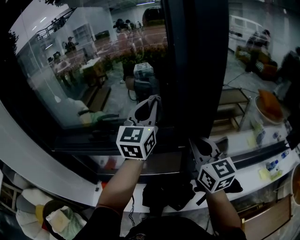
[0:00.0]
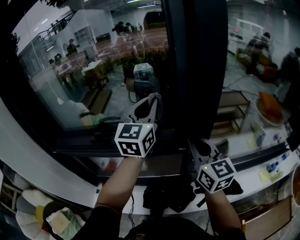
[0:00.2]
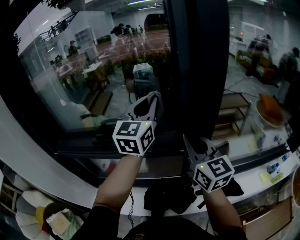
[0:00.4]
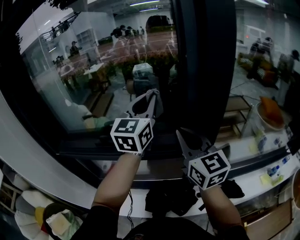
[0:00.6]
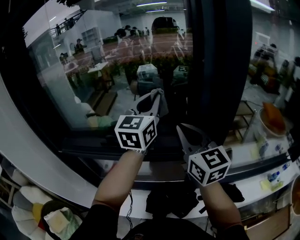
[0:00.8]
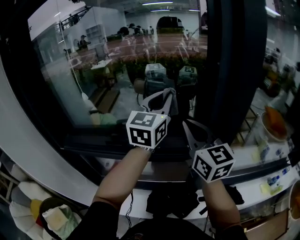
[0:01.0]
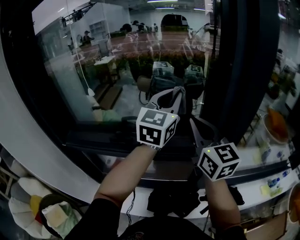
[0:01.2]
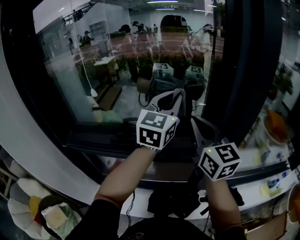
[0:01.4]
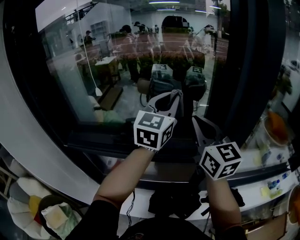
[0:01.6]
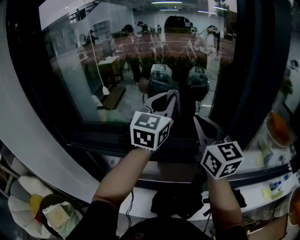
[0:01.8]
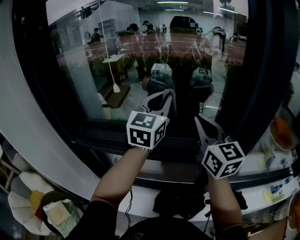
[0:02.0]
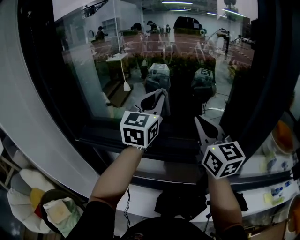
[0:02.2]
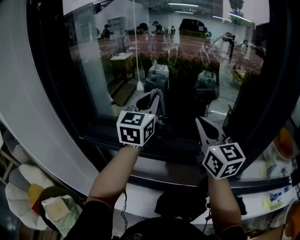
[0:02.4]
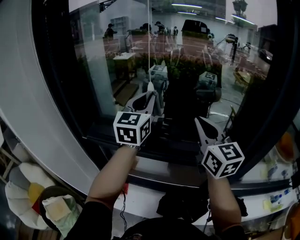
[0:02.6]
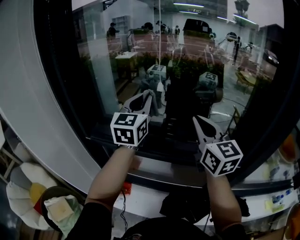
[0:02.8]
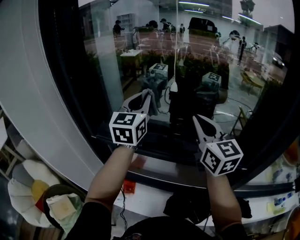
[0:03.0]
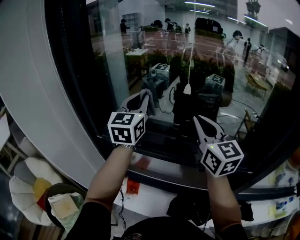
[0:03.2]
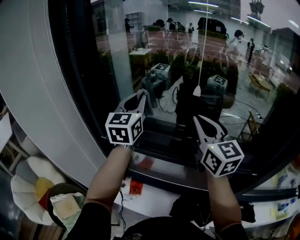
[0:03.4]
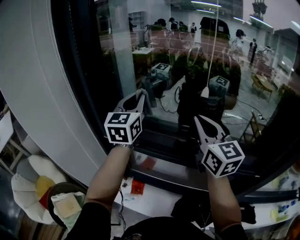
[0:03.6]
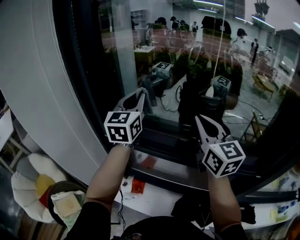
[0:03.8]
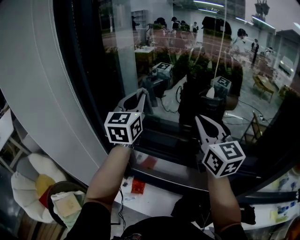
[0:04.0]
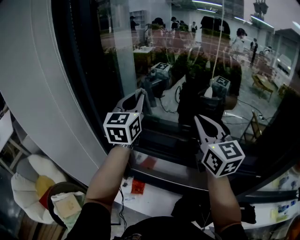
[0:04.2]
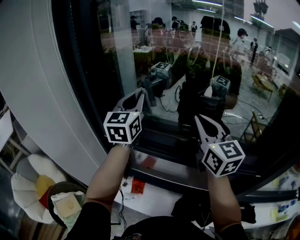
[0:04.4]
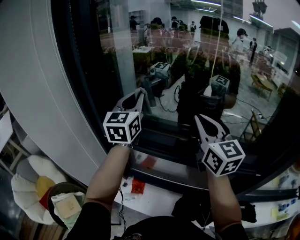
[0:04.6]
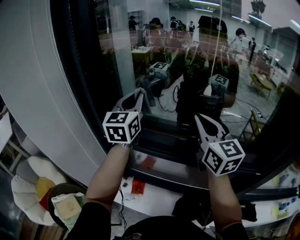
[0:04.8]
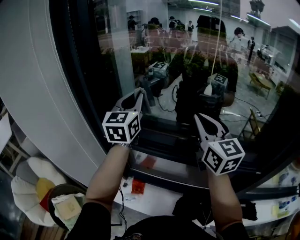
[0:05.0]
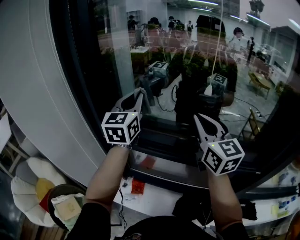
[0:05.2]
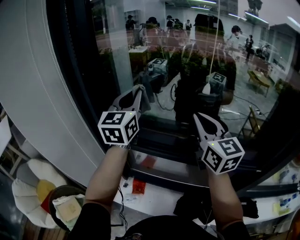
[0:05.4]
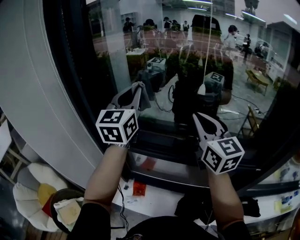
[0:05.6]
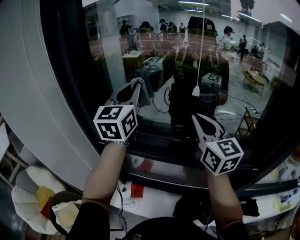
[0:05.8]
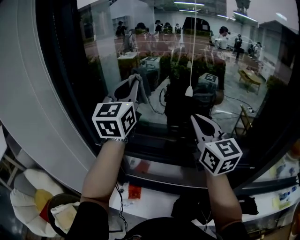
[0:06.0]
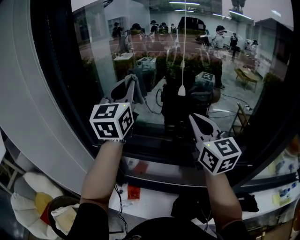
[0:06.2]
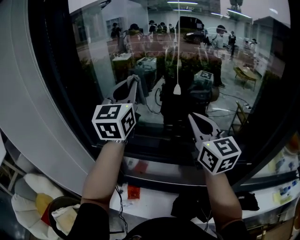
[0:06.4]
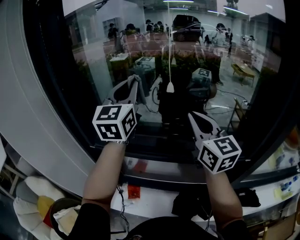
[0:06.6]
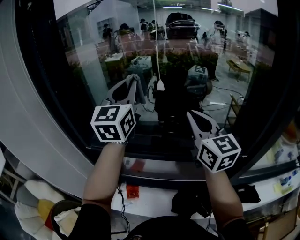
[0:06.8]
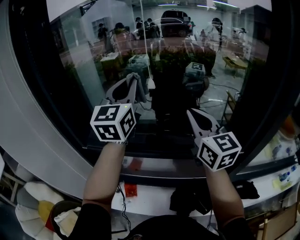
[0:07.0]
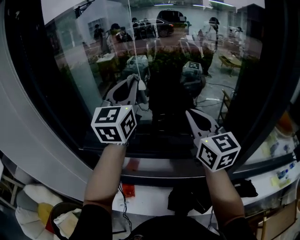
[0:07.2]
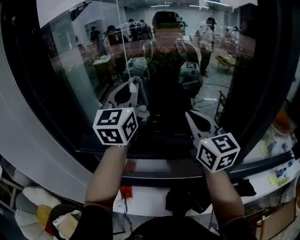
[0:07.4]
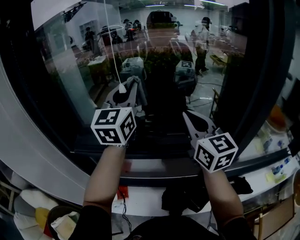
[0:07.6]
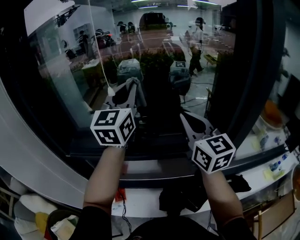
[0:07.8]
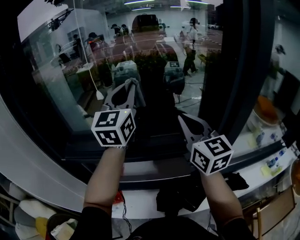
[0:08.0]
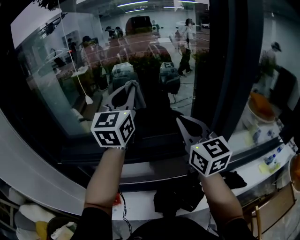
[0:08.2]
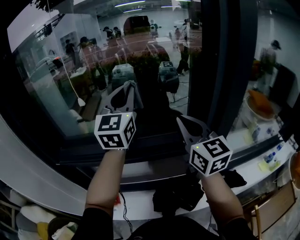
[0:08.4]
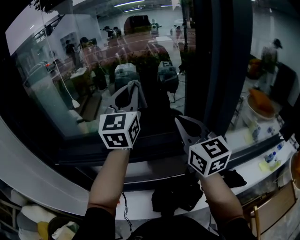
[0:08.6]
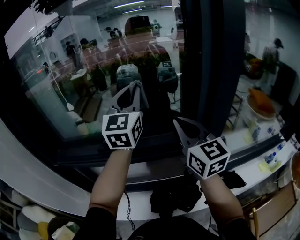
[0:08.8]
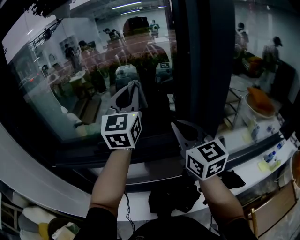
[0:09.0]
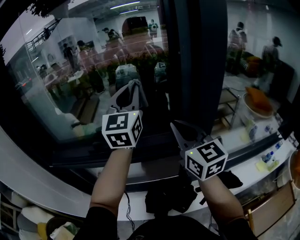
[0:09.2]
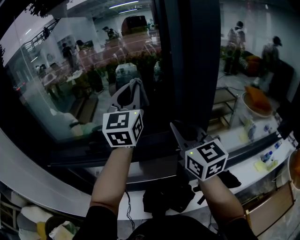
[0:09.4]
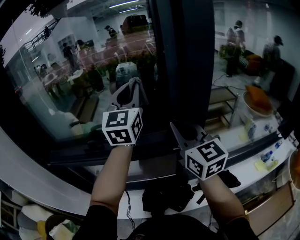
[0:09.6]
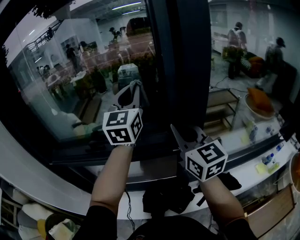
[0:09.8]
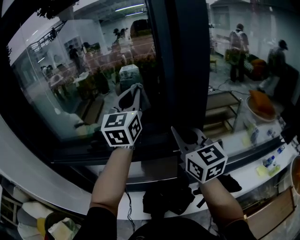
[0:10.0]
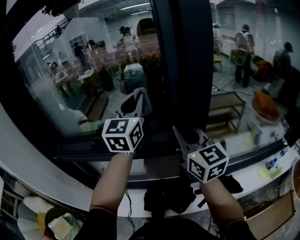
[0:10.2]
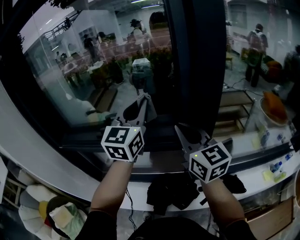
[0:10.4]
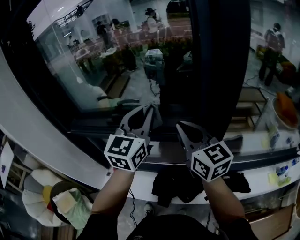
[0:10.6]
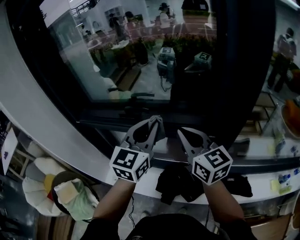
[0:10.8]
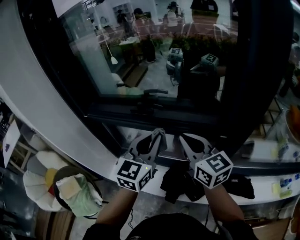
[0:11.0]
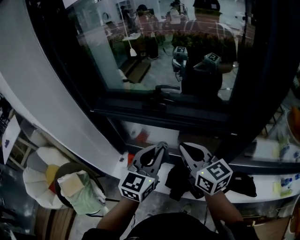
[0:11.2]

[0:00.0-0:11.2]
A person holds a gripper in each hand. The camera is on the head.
0:00.0 to 0:01.6: The left gripper goes some 10 cm to the left and upward. Meanwhile the right gripper shifts some 20 cm to the left and upward.
0:01.6 to 0:03.2: The two grippers go roughly 35 cm to the left. The left gripper swivels about 20 degrees.
0:03.2 to 0:04.8: There are only small adjustments of the grippers.
0:04.8 to 0:06.4: The left gripper travels upward by roughly 5 cm.
0:06.4 to 0:08.0: Both grippers move to the right, approximately 20 cm.
0:08.0 to 0:09.6: The two grippers go approximately 25 cm to the right.
0:09.6 to 0:11.2: The right gripper travels to the left and downward by roughly 30 cm, and swivels roughly 30 degrees. Meanwhile the left gripper travels downward, to the left and backward by roughly 40 cm, and swivels roughly 20 degrees.

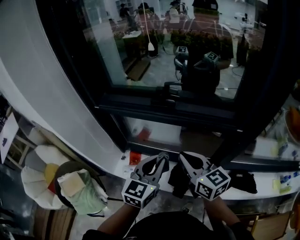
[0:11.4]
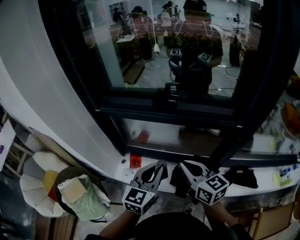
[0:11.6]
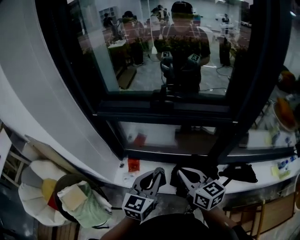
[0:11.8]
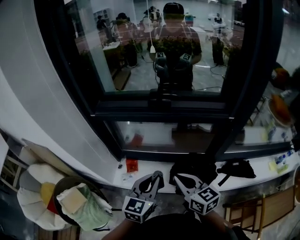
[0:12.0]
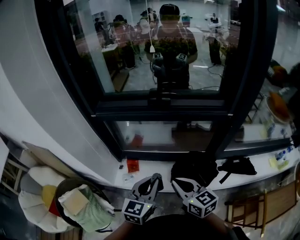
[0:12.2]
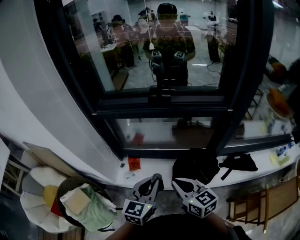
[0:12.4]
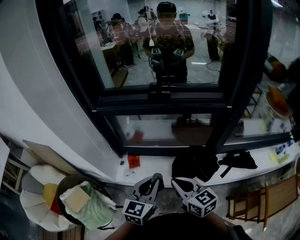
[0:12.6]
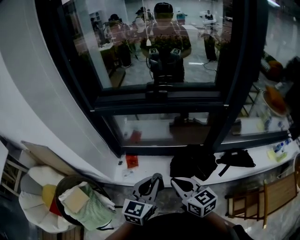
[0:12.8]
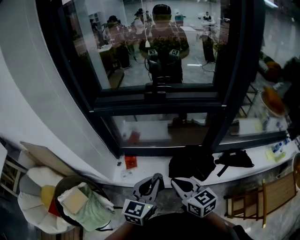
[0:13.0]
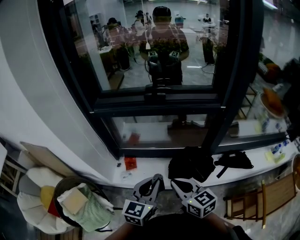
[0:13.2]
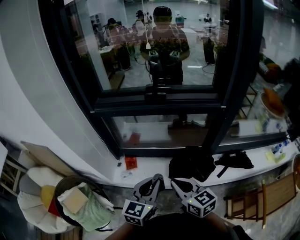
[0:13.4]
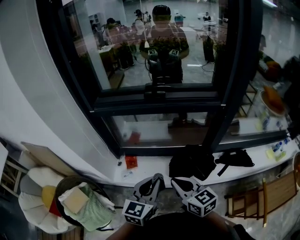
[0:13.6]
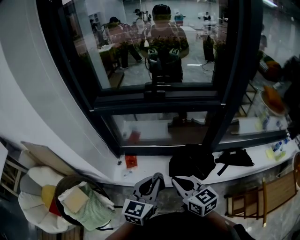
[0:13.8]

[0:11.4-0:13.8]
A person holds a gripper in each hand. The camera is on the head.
0:11.4 to 0:12.6: Both grippers travel together backward, to the left and downward, roughly 20 cm.
0:12.6 to 0:13.8: The grippers move only a little.

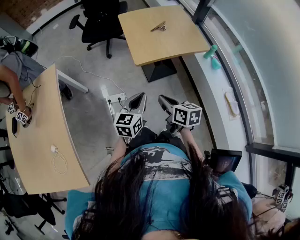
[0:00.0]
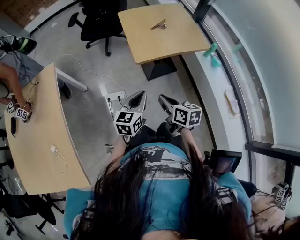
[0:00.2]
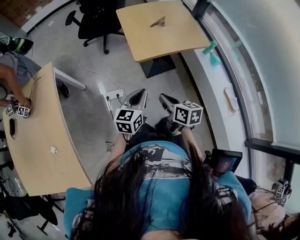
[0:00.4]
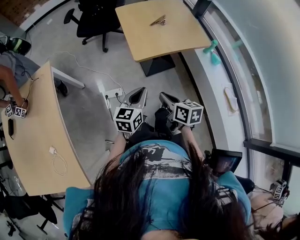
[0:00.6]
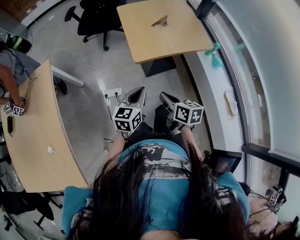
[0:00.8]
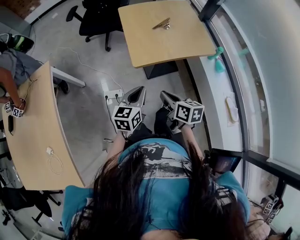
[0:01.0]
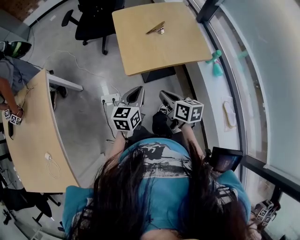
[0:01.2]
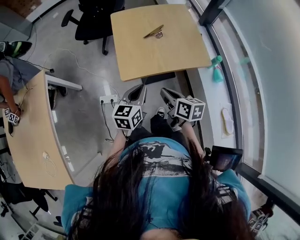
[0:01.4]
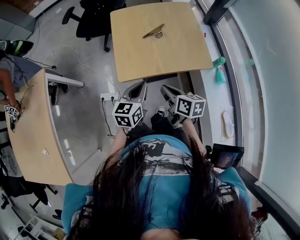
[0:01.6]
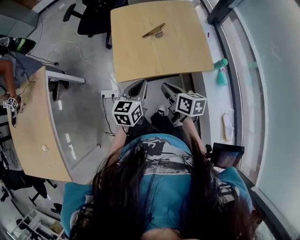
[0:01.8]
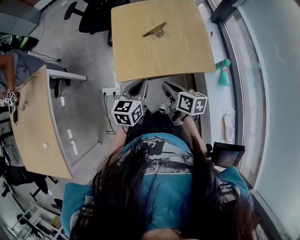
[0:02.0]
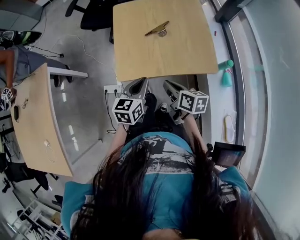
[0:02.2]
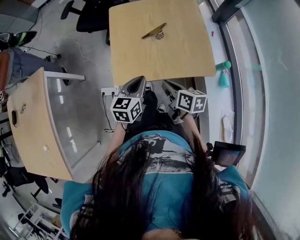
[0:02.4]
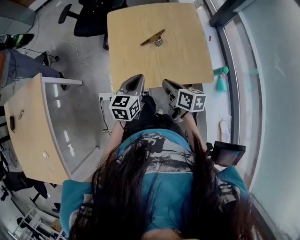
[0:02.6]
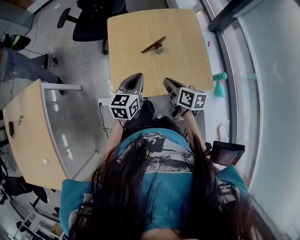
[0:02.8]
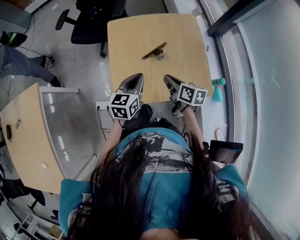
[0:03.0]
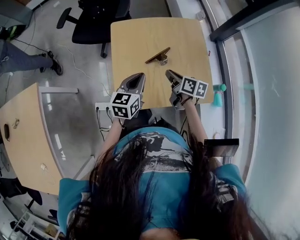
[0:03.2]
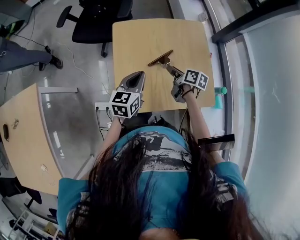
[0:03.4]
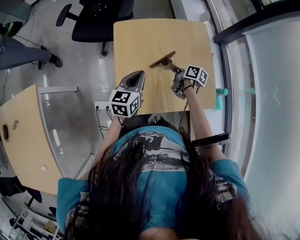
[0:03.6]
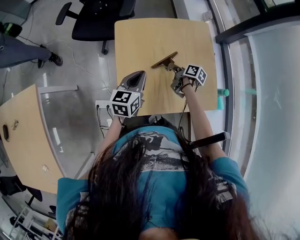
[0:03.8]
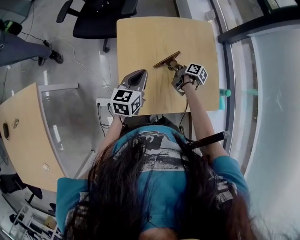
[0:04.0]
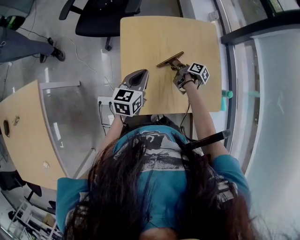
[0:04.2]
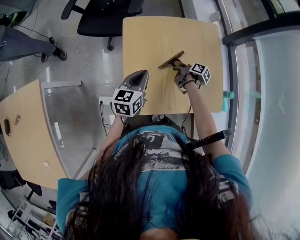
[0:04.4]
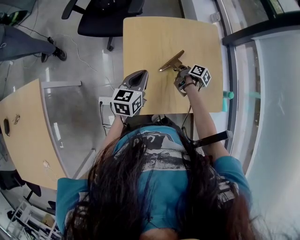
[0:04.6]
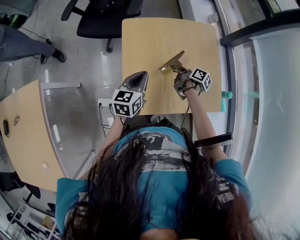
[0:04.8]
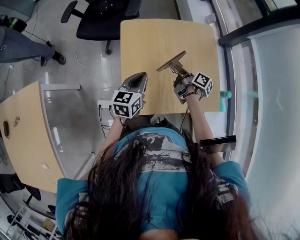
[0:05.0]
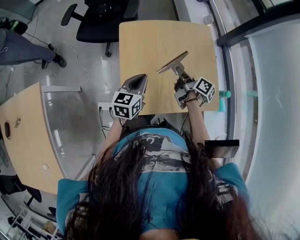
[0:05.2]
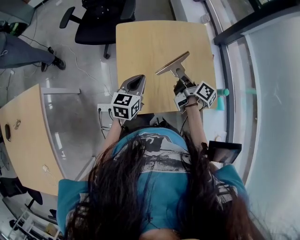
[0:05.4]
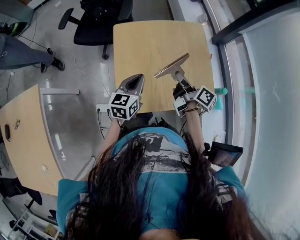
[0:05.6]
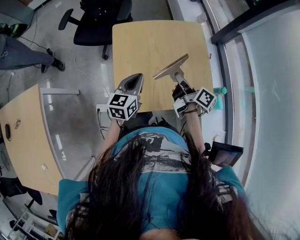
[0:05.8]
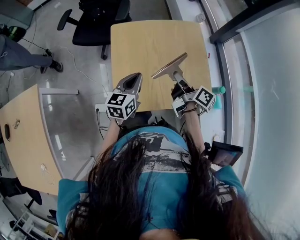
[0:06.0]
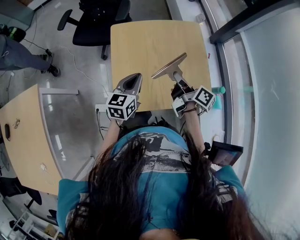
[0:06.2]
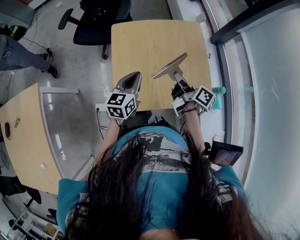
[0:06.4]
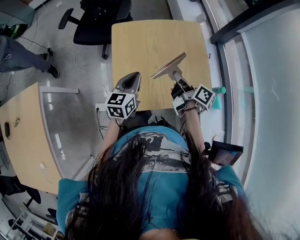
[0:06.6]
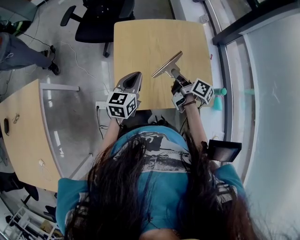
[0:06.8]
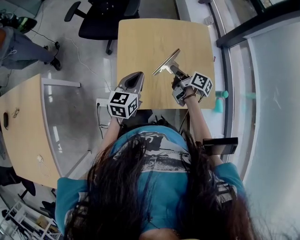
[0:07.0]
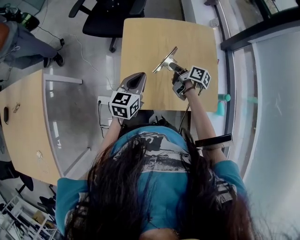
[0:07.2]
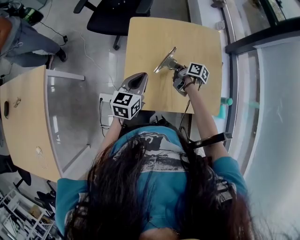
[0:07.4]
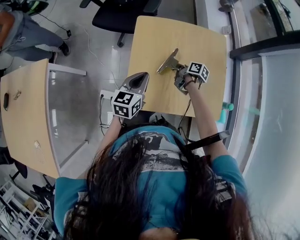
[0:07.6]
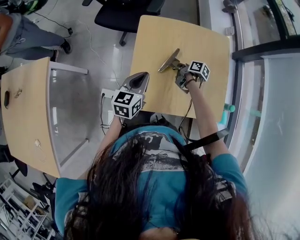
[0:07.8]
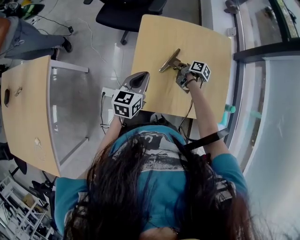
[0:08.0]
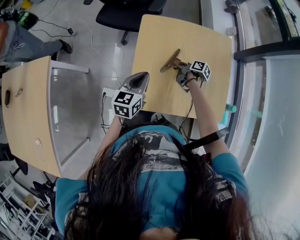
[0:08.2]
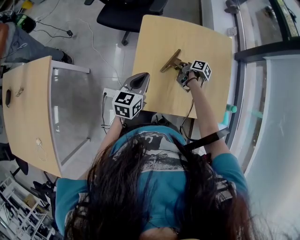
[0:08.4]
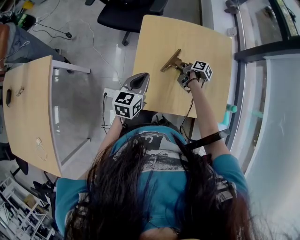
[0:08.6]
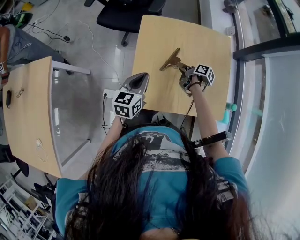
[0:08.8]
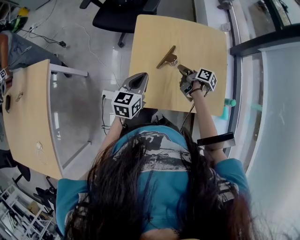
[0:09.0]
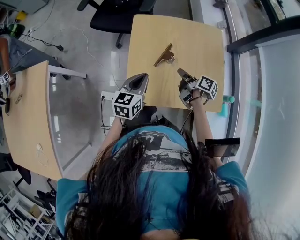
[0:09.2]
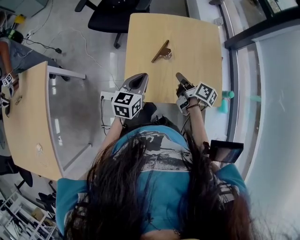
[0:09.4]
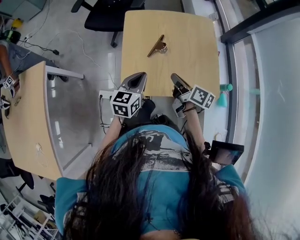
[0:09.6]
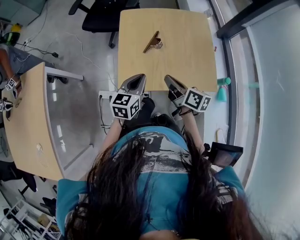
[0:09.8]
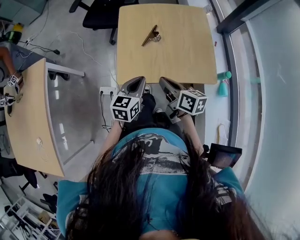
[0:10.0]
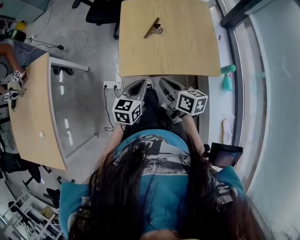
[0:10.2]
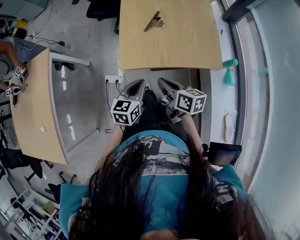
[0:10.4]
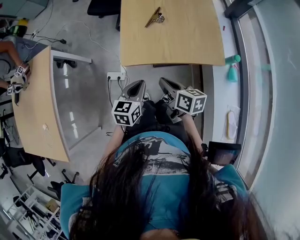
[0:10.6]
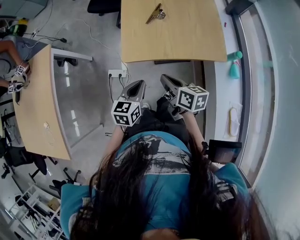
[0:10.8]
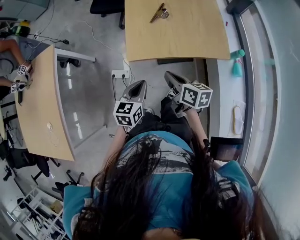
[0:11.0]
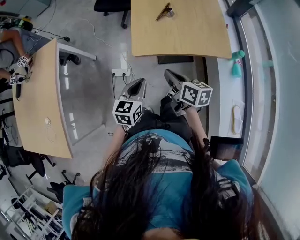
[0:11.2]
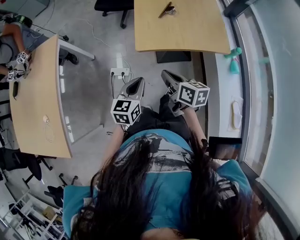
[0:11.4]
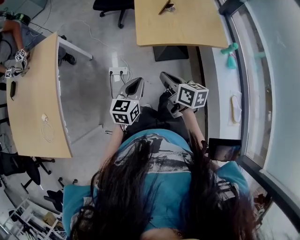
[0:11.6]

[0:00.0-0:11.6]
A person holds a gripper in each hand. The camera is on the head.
0:00.0 to 0:01.4: The two grippers go about 25 cm forward and to the right.
0:01.4 to 0:02.8: The left gripper travels forward by roughly 20 cm. The right gripper moves forward and to the right, approximately 20 cm.
0:02.8 to 0:04.4: The left gripper moves forward and to the left, about 15 cm; the right gripper shifts approximately 30 cm forward and downward, and twists roughly 40 degrees clockwise, seen from behind.
0:04.4 to 0:05.8: The right gripper shifts approximately 25 cm upward and backward, and swivels roughly 30 degrees. The left gripper changes place by about 10 cm.
0:05.8 to 0:07.2: The right gripper moves downward, forward and to the left, about 15 cm, and rotates some 20 degrees.
0:07.2 to 0:08.8: The right gripper goes about 10 cm downward. The left gripper moves to the left, roughly 5 cm.
0:08.8 to 0:10.2: The left gripper shifts approximately 25 cm backward, while the right gripper heads backward and upward, covering roughly 35 cm, swivels some 40 degrees, and closes.
0:10.2 to 0:11.6: The left gripper moves to the left and backward, some 25 cm. The right gripper goes approximately 25 cm backward and to the left.
